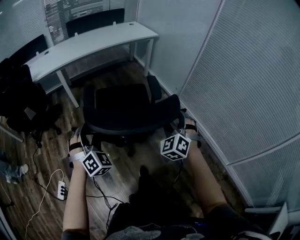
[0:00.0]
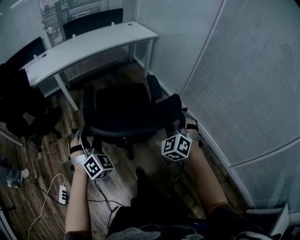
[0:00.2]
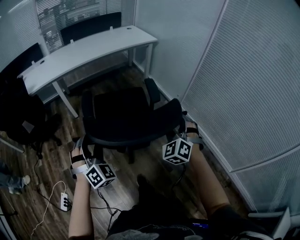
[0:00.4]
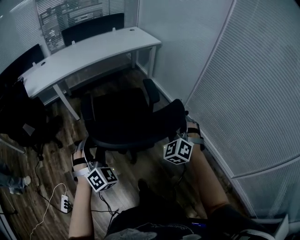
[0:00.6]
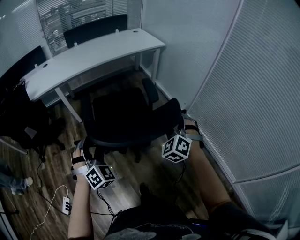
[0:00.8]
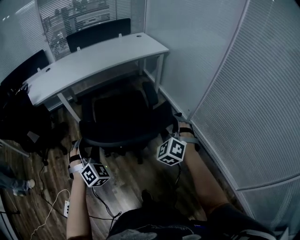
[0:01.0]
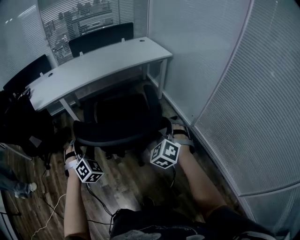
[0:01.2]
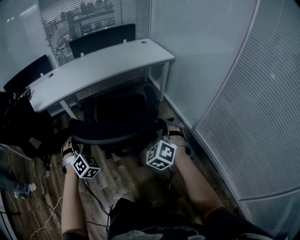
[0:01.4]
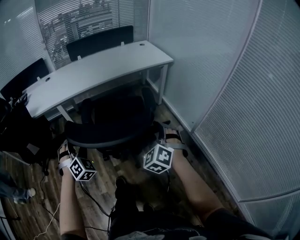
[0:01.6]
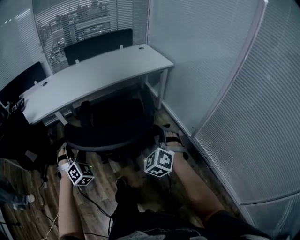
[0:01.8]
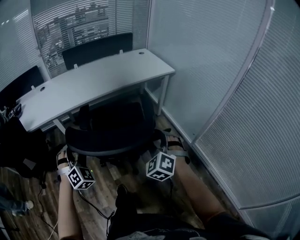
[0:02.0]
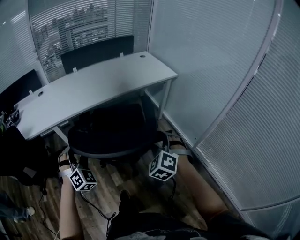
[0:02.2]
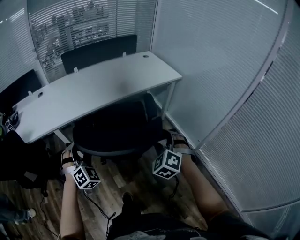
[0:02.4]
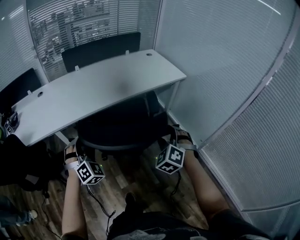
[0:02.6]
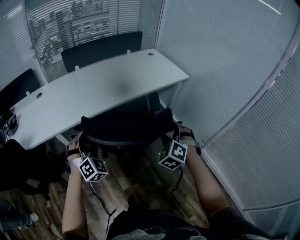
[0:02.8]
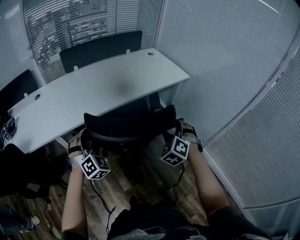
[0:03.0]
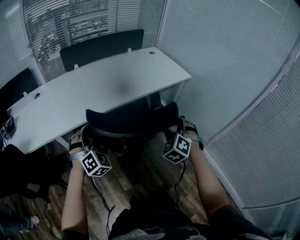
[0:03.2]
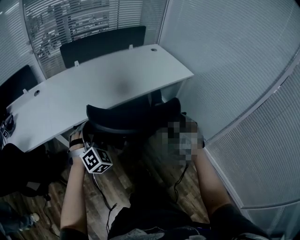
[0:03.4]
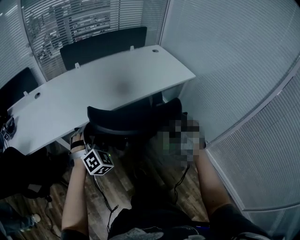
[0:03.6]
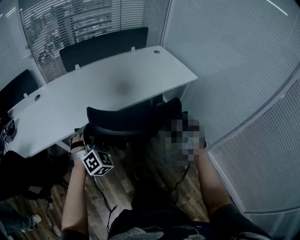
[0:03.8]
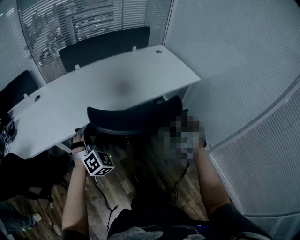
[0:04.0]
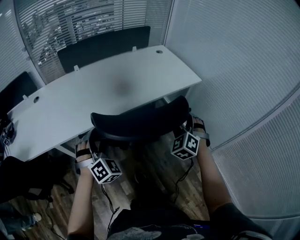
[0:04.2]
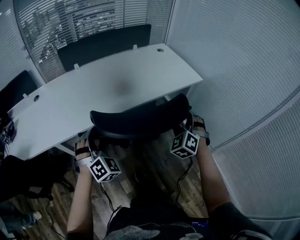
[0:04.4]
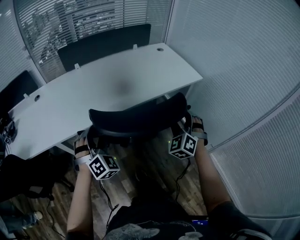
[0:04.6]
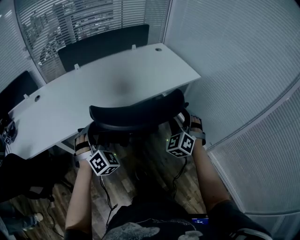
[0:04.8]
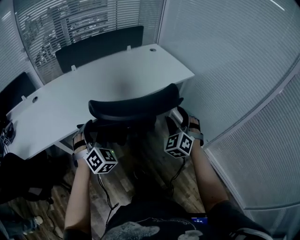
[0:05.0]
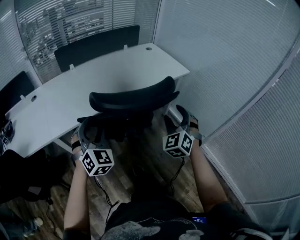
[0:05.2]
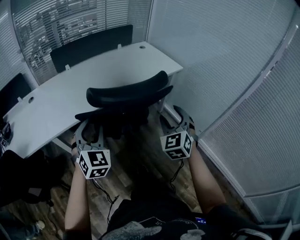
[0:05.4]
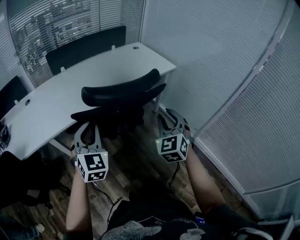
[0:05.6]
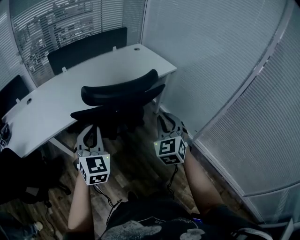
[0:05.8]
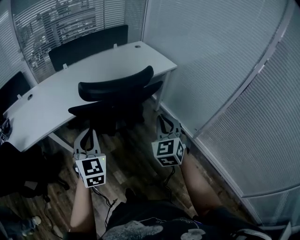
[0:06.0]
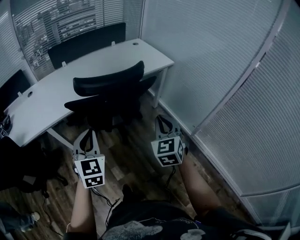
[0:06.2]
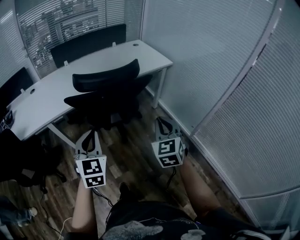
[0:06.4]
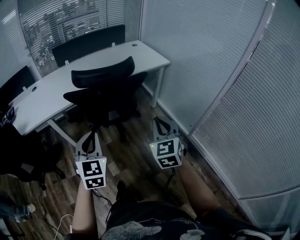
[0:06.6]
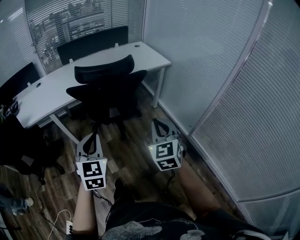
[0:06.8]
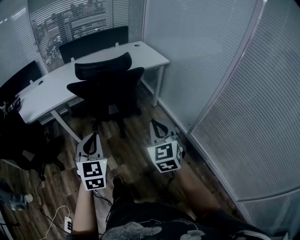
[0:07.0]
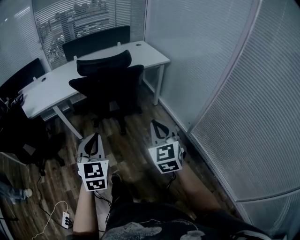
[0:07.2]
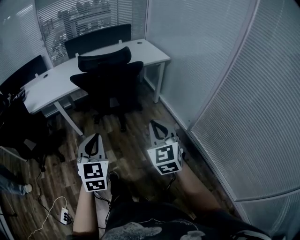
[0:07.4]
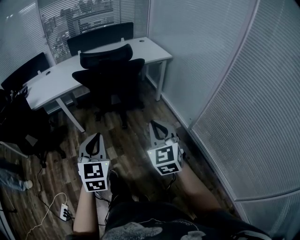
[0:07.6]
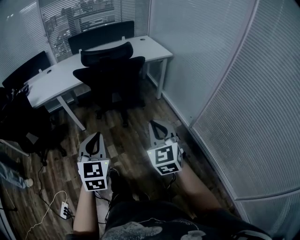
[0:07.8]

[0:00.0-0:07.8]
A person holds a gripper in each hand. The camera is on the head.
0:00.0 to 0:01.6: Both grippers move forward, some 35 cm.
0:01.6 to 0:03.2: The two grippers go roughly 35 cm forward.
0:03.2 to 0:04.6: The left gripper is displaced forward by roughly 10 cm. The right gripper travels forward by approximately 15 cm.
0:04.6 to 0:06.2: Both grippers move backward, some 25 cm. The left gripper swivels approximately 40 degrees, and closes up, while the right gripper swivels some 30 degrees, and closes.
0:06.2 to 0:07.8: The right gripper travels backward by some 30 cm. The left gripper is displaced backward and to the right by approximately 35 cm.

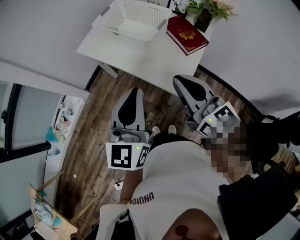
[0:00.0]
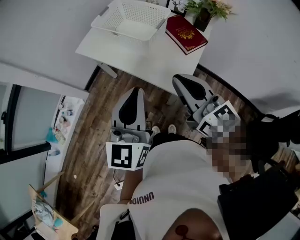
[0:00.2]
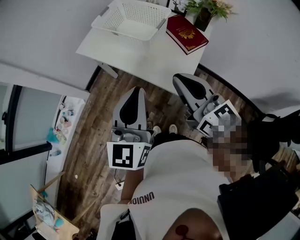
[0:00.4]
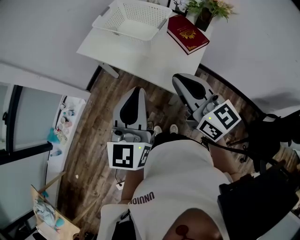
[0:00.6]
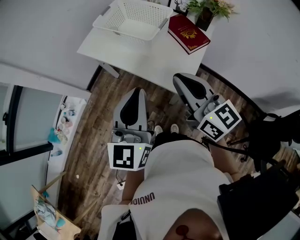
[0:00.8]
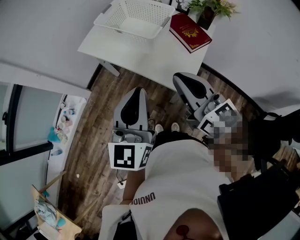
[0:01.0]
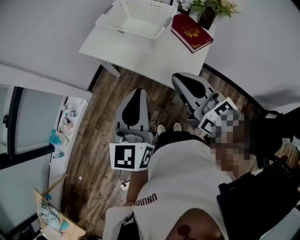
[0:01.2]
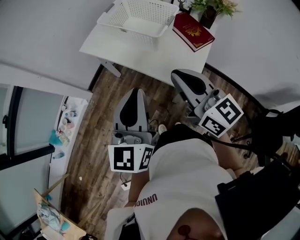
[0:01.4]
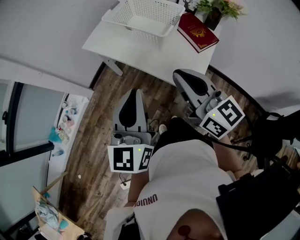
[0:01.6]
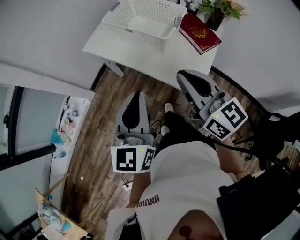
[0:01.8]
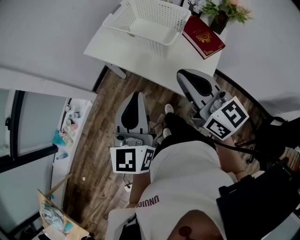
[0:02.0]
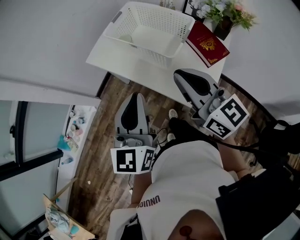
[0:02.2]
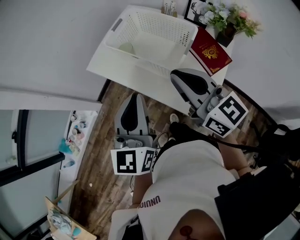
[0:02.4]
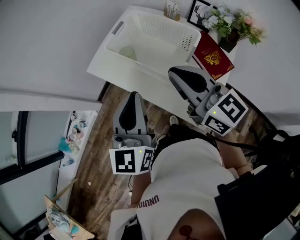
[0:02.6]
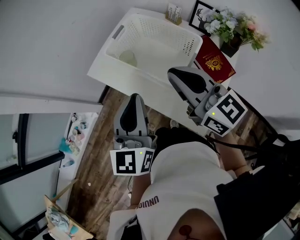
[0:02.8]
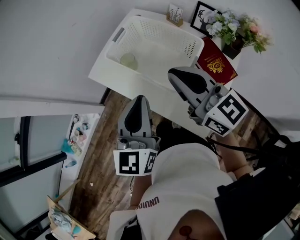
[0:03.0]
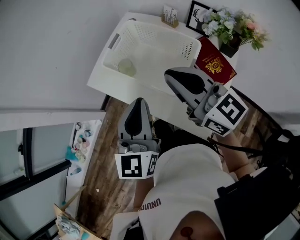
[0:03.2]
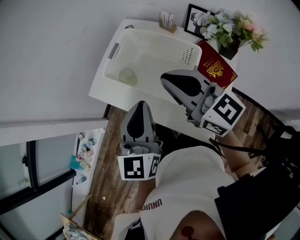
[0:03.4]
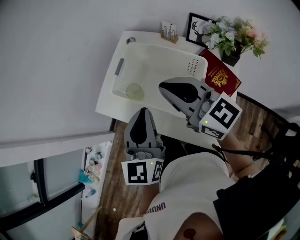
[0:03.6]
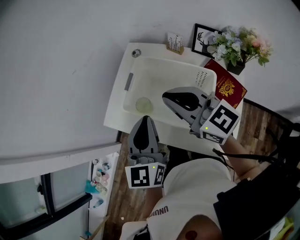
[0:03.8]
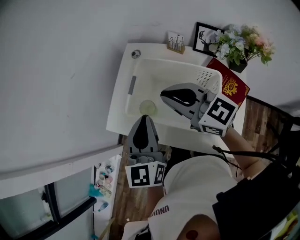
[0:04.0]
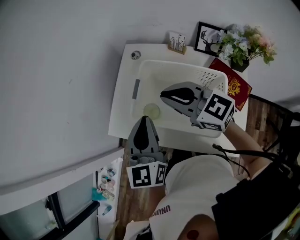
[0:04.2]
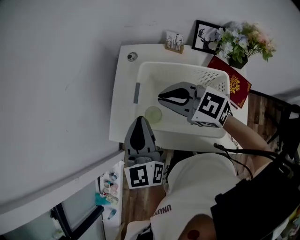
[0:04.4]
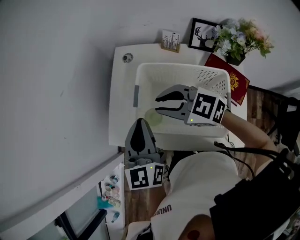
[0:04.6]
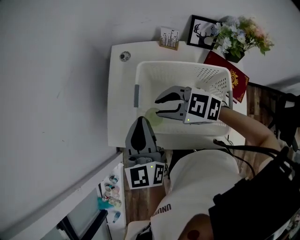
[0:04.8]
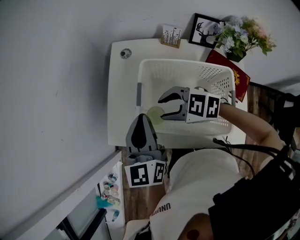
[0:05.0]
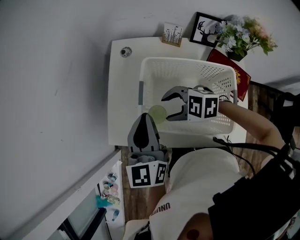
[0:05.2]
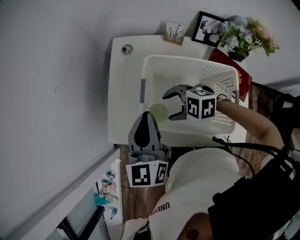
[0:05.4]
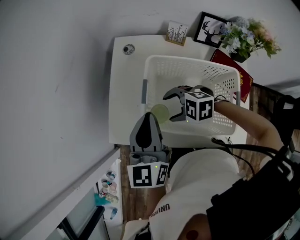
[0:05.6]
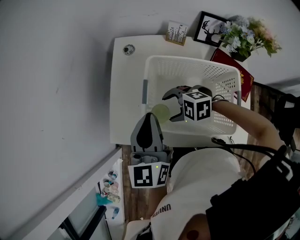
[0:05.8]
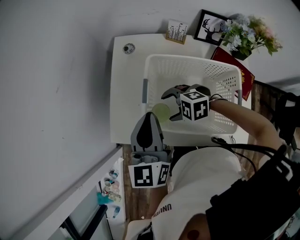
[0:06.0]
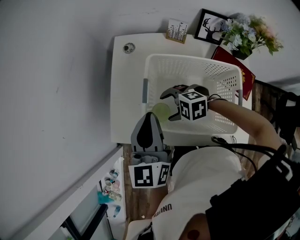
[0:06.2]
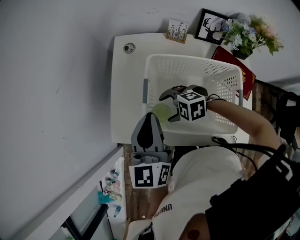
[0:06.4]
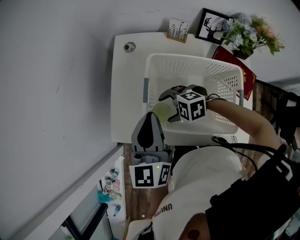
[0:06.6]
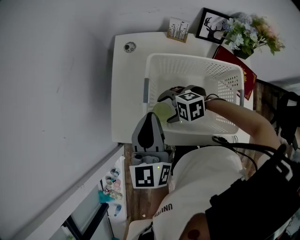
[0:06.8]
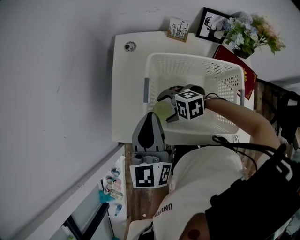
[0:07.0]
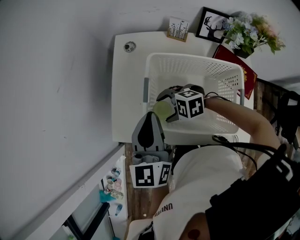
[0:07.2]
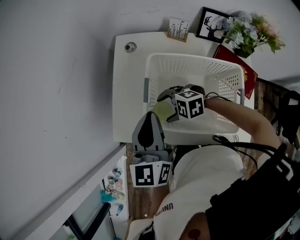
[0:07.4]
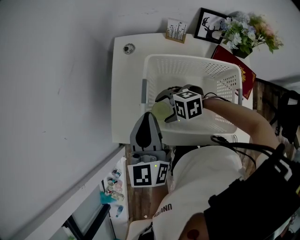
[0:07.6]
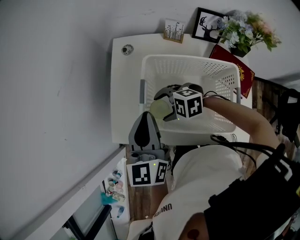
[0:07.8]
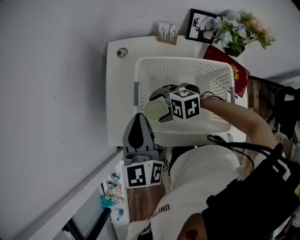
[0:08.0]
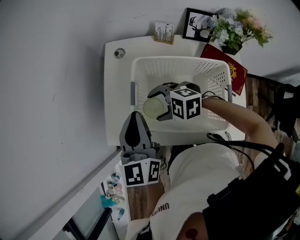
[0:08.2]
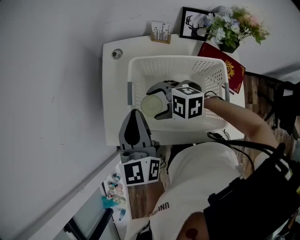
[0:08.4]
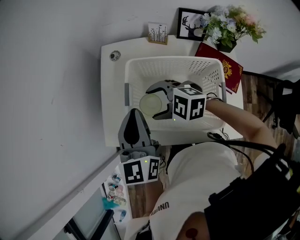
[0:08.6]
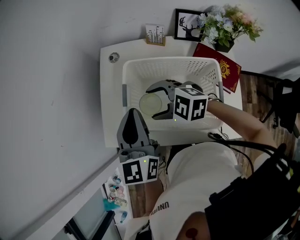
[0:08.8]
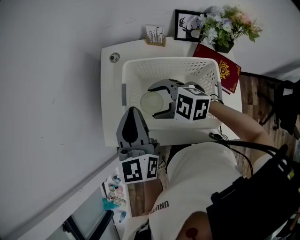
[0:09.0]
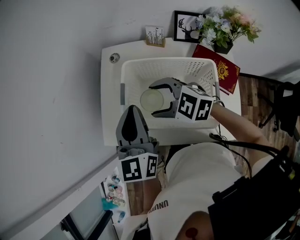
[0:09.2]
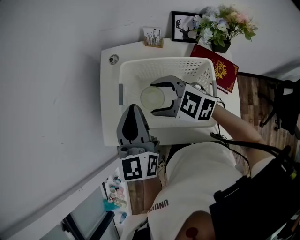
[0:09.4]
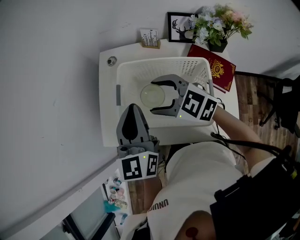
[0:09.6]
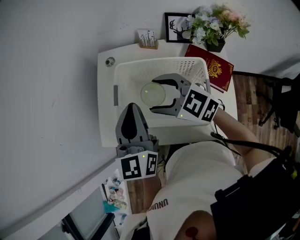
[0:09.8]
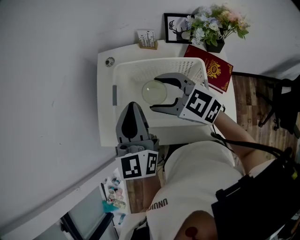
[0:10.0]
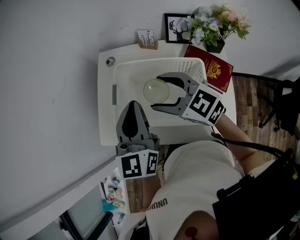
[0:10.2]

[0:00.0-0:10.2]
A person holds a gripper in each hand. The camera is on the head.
0:00.0 to 0:01.4: The right gripper goes approximately 5 cm to the left.
0:01.4 to 0:03.0: The two grippers go some 20 cm forward.
0:03.0 to 0:04.4: The grippers both shift forward by roughly 25 cm. The right gripper swivels roughly 20 degrees.
0:04.4 to 0:05.8: The right gripper is displaced downward by about 20 cm, tilts its fingers some 40 degrees downward, and opens up.
0:05.8 to 0:07.2: The grippers stay close to where they were, moving slightly.
0:07.2 to 0:08.8: The right gripper heads upward, covering approximately 10 cm, and turns by approximately 20 degrees.
0:08.8 to 0:10.2: The right gripper is displaced upward and to the right by about 10 cm, and swivels approximately 30 degrees. The left gripper changes place by about 5 cm.

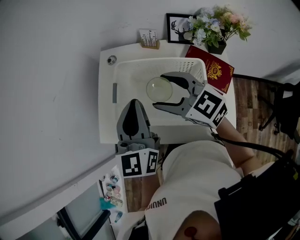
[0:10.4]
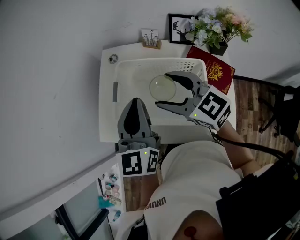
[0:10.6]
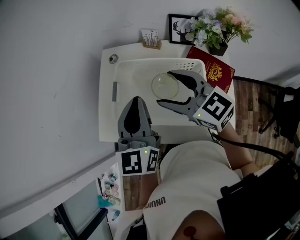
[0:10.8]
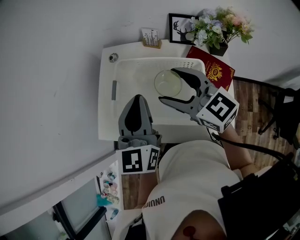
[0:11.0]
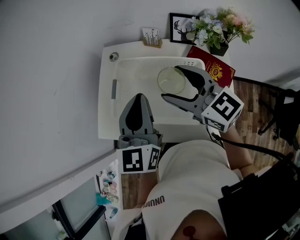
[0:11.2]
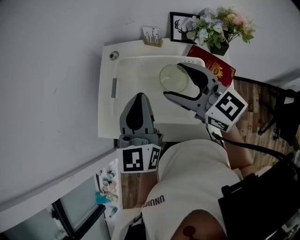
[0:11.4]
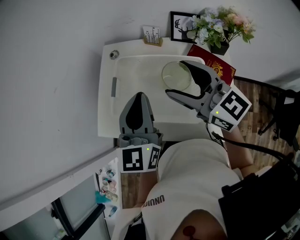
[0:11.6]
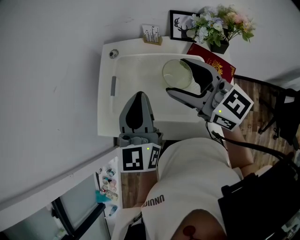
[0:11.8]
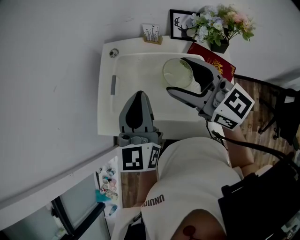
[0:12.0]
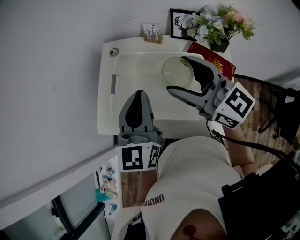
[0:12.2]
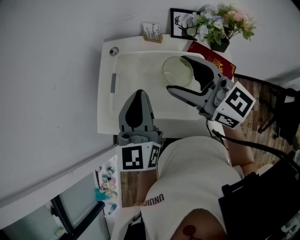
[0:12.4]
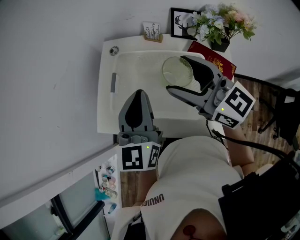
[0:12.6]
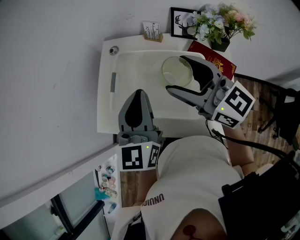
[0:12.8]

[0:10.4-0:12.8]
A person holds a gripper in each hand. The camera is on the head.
0:10.4 to 0:11.6: The right gripper moves upward and to the right, some 10 cm.
0:11.6 to 0:12.8: The grippers move only a little.

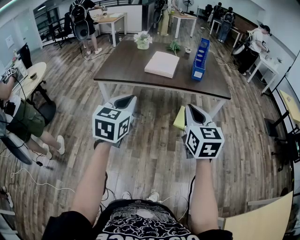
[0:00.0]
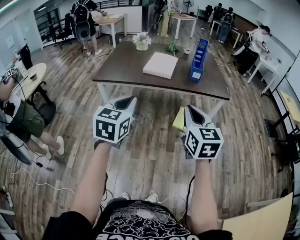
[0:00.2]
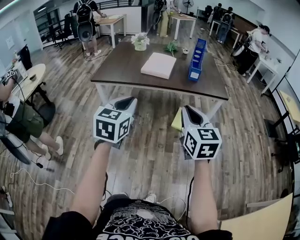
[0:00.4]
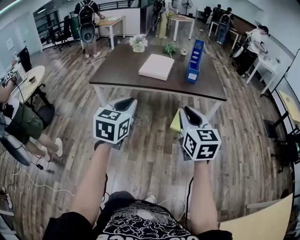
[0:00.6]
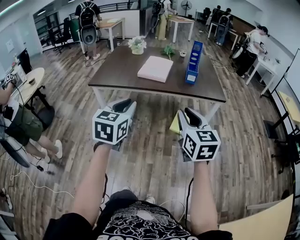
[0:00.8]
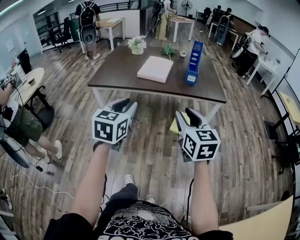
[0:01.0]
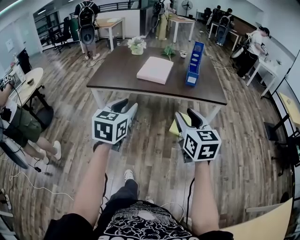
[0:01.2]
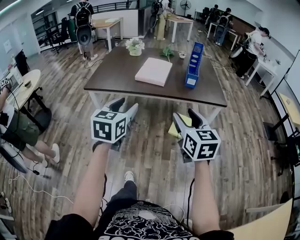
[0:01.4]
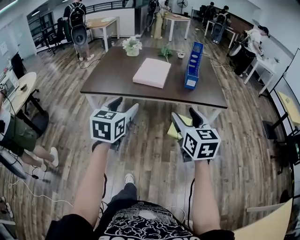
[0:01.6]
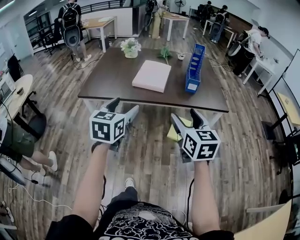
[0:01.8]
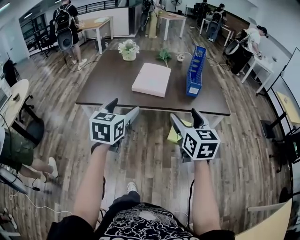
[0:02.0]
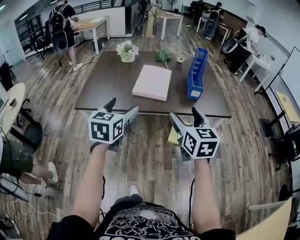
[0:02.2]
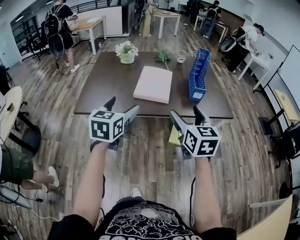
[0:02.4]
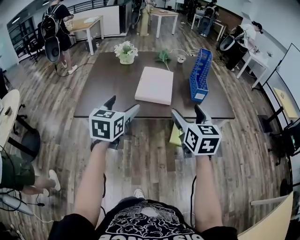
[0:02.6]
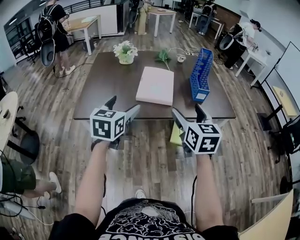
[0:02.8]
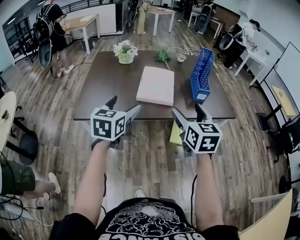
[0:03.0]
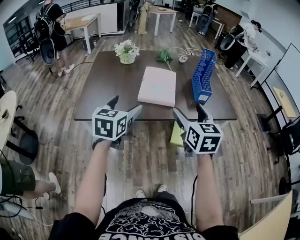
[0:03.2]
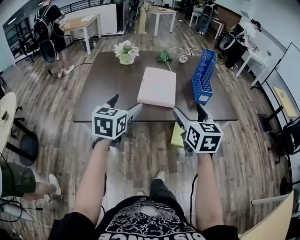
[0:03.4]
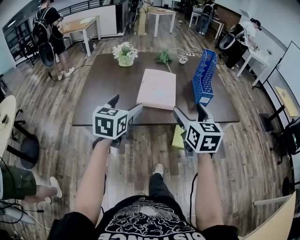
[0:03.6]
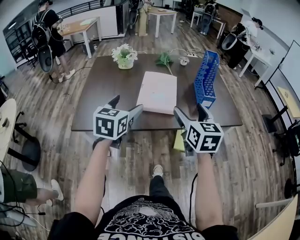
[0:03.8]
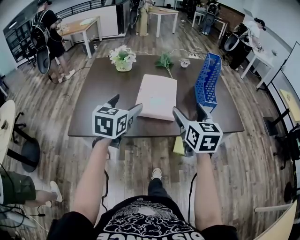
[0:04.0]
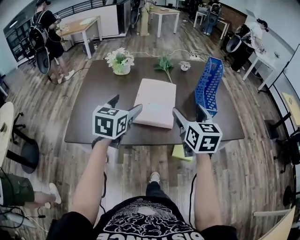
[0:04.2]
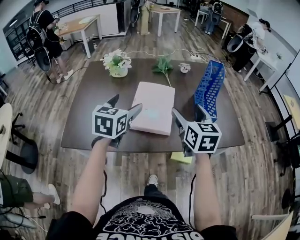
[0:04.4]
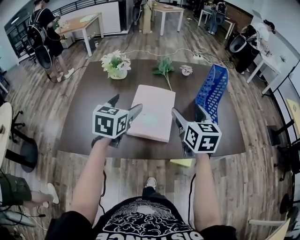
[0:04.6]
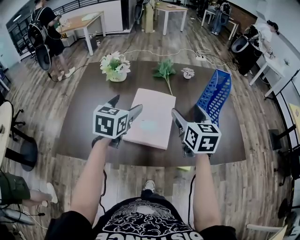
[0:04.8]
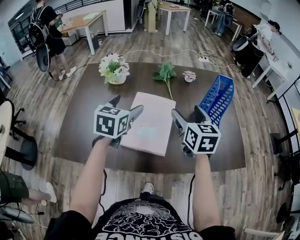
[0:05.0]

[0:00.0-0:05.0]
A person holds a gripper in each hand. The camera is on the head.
0:00.0 to 0:01.6: The two grippers go approximately 10 cm forward. The right gripper opens up. The left gripper opens up.
0:01.6 to 0:03.4: Both grippers travel together forward and to the left, some 25 cm.
0:03.4 to 0:05.0: The two grippers go about 30 cm forward.
